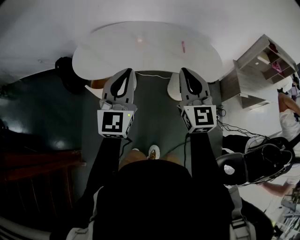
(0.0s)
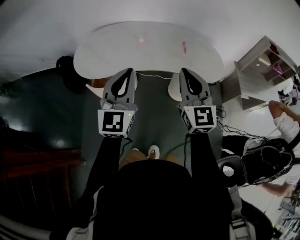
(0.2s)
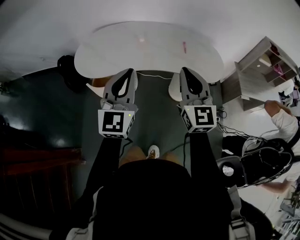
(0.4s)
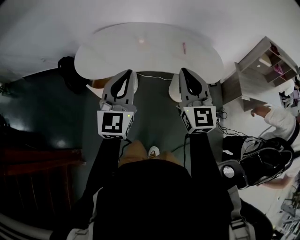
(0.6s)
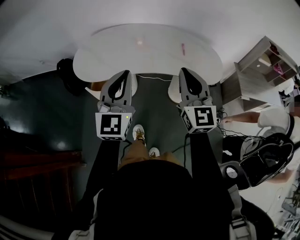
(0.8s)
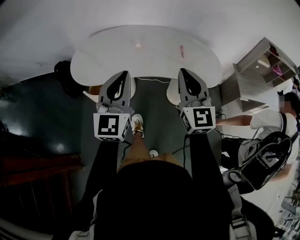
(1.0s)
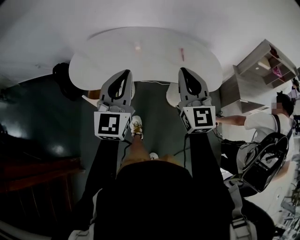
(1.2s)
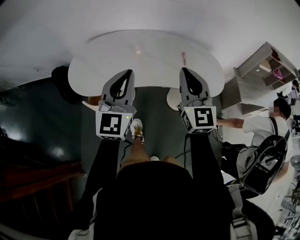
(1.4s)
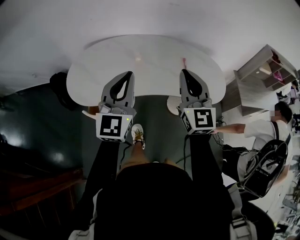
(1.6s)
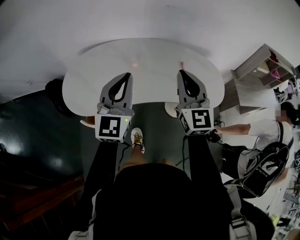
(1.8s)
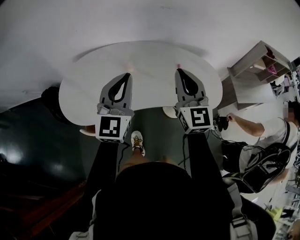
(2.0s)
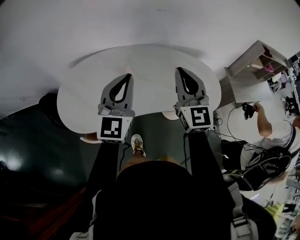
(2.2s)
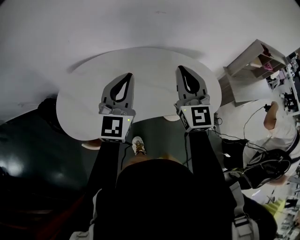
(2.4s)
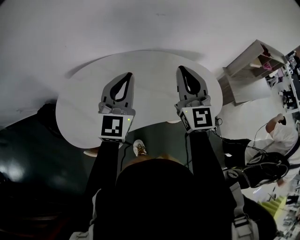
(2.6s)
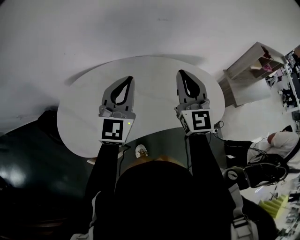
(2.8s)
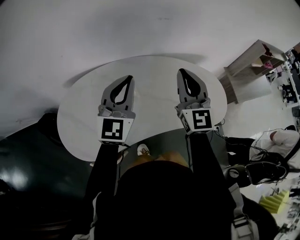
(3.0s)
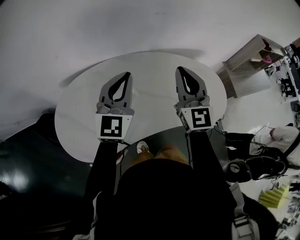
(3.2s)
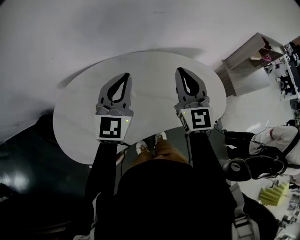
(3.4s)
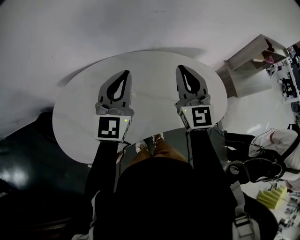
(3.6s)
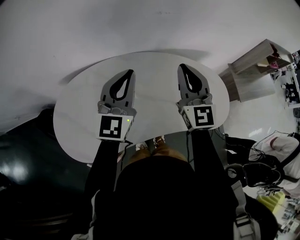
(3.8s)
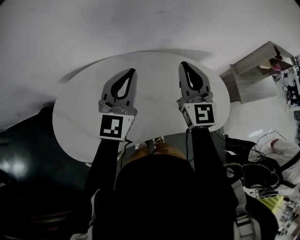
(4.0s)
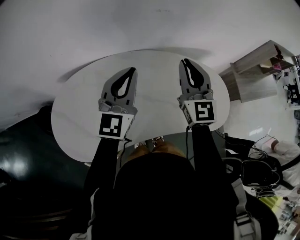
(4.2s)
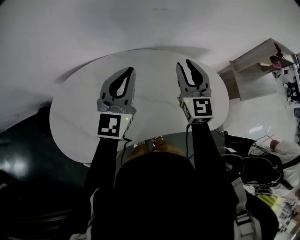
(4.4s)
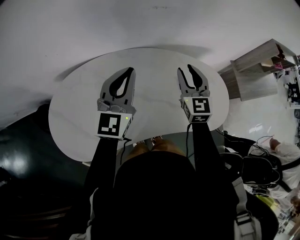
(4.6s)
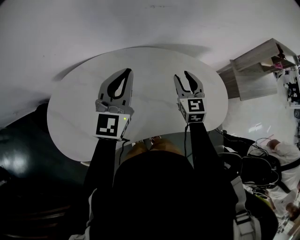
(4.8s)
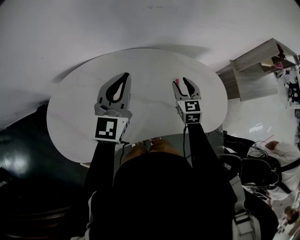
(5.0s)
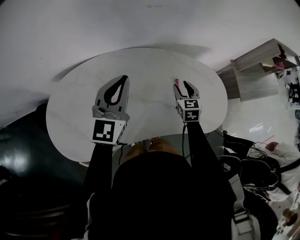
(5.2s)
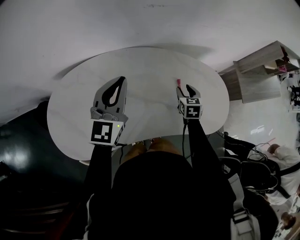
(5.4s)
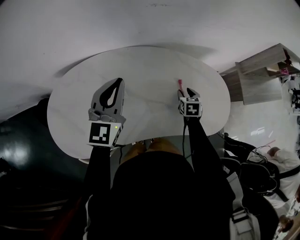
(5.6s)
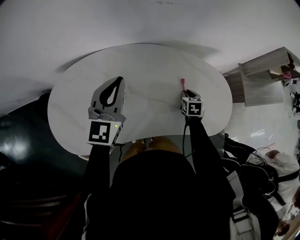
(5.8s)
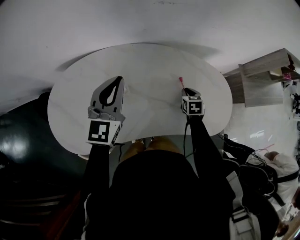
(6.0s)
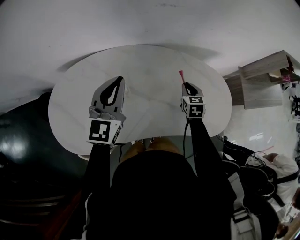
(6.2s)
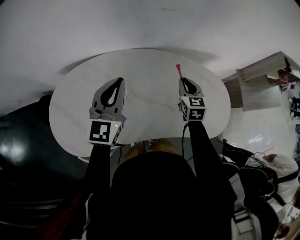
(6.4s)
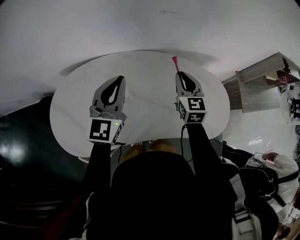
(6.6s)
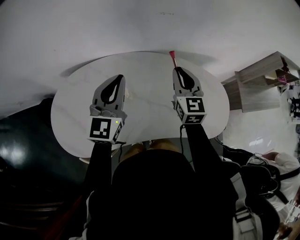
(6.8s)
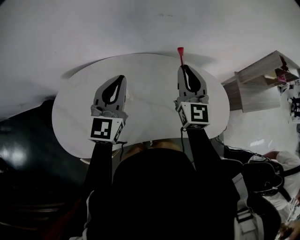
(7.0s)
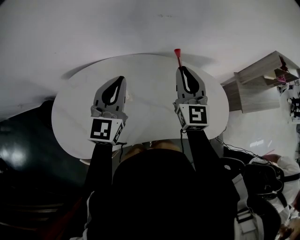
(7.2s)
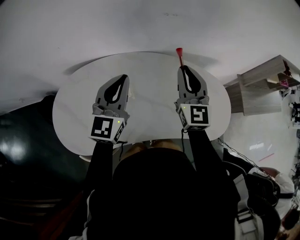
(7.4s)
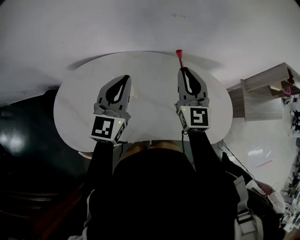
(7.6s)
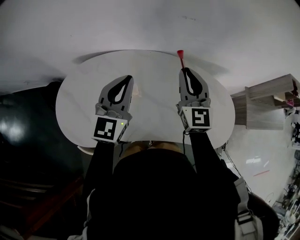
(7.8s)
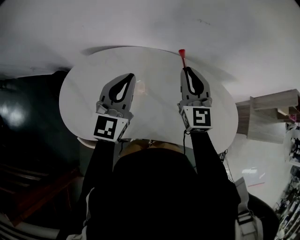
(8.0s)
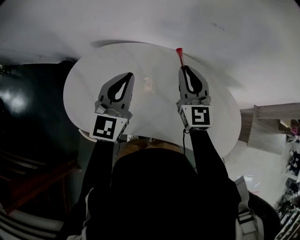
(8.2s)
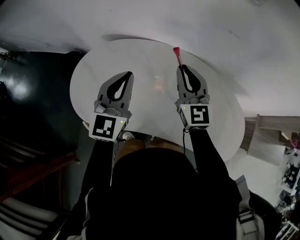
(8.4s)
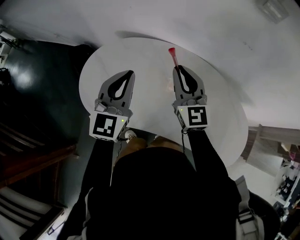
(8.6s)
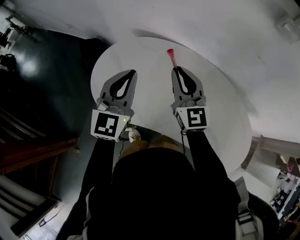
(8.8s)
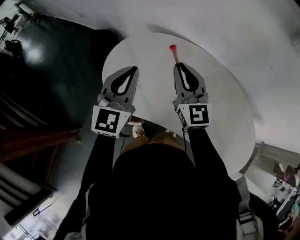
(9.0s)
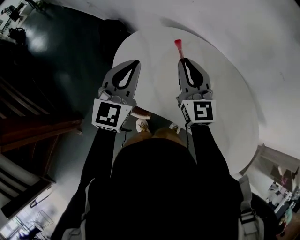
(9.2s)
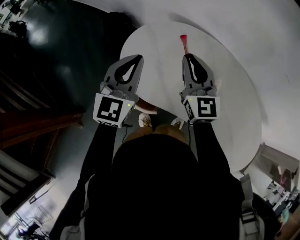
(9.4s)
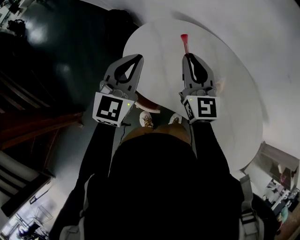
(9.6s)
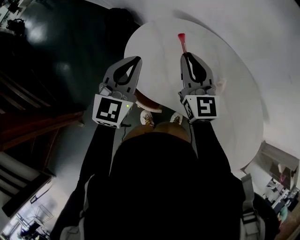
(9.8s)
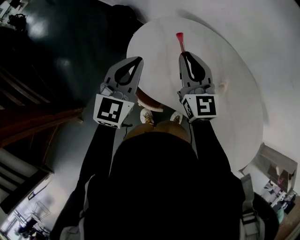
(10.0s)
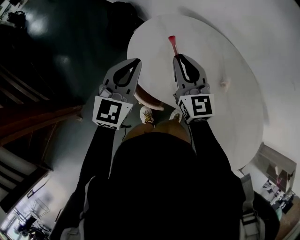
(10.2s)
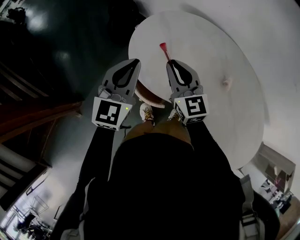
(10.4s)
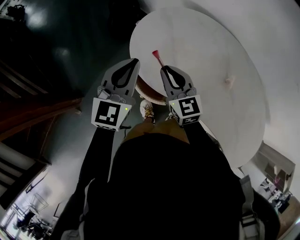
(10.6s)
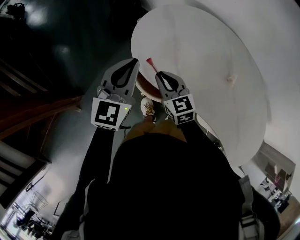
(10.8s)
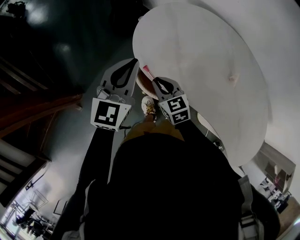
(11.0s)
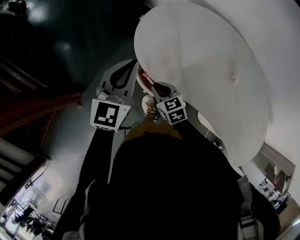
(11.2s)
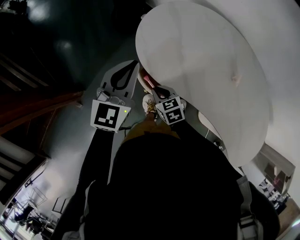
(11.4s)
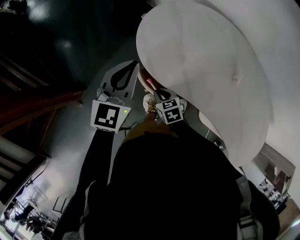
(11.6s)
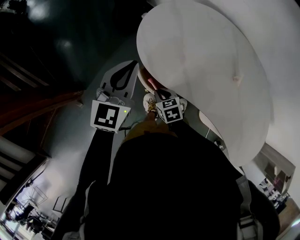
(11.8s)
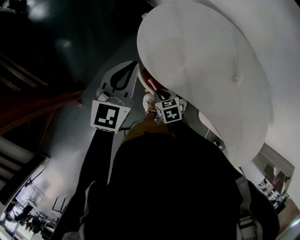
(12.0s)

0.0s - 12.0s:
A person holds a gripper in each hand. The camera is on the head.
0.0s - 1.6s: The two grippers go some 15 cm forward.
1.6s - 3.0s: The two grippers go approximately 20 cm forward.
3.0s - 4.4s: The left gripper is displaced forward by about 10 cm. The right gripper moves forward and downward, approximately 10 cm, and opens up.
4.4s - 6.0s: The right gripper goes roughly 30 cm downward, and tips its fingers downward by approximately 50 degrees. Meanwhile the left gripper moves downward, about 5 cm.
6.0s - 7.6s: The right gripper shifts approximately 35 cm upward and to the left, and tilts its fingers about 50 degrees upward.
7.6s - 9.0s: The left gripper ends up approximately 30 cm from where it was, and rotates some 30 degrees; the right gripper changes place by about 35 cm, and changes its angle by about 40 degrees.
9.0s - 10.4s: The grippers both shift to the left and downward by roughly 15 cm.
10.4s - 12.0s: The right gripper travels downward and backward by some 30 cm, and tilts its fingers approximately 40 degrees downward. Meanwhile the left gripper changes place by roughly 5 cm.

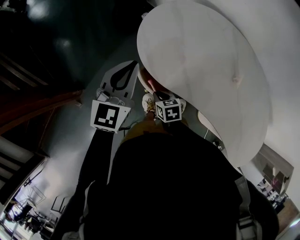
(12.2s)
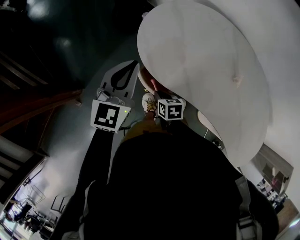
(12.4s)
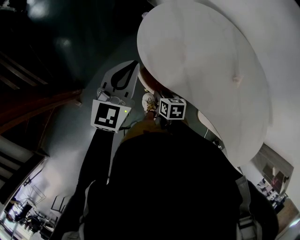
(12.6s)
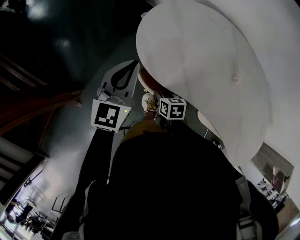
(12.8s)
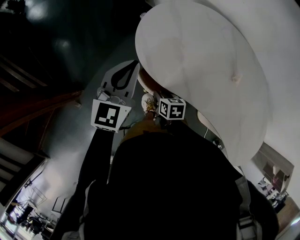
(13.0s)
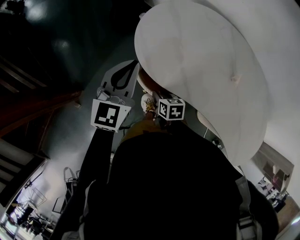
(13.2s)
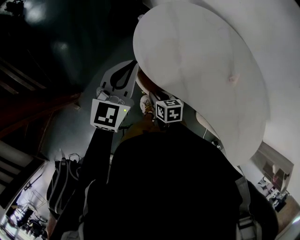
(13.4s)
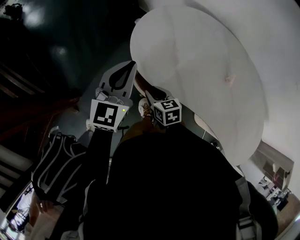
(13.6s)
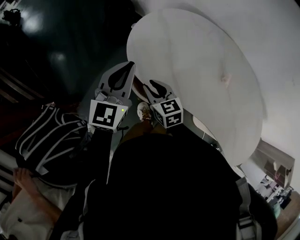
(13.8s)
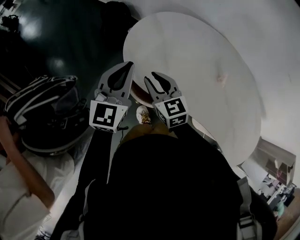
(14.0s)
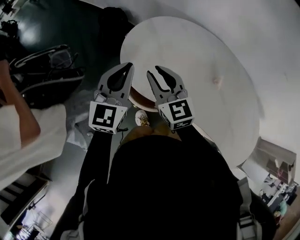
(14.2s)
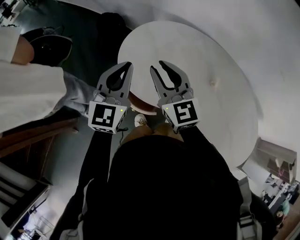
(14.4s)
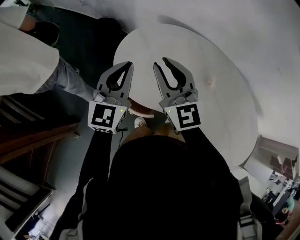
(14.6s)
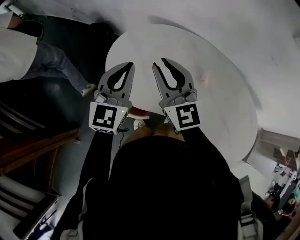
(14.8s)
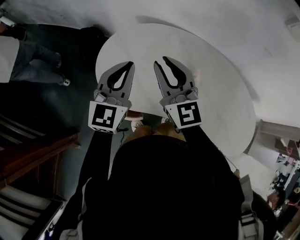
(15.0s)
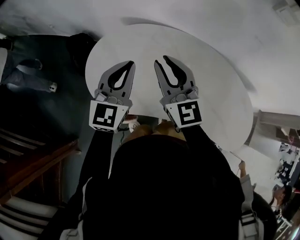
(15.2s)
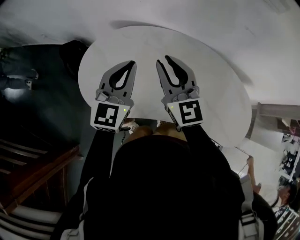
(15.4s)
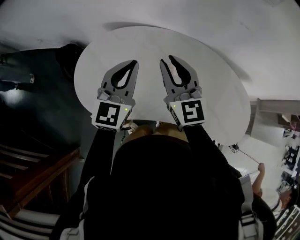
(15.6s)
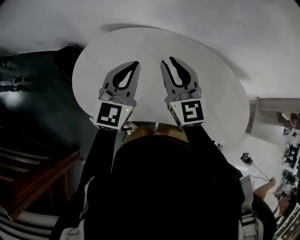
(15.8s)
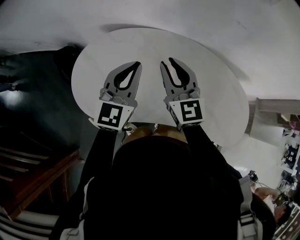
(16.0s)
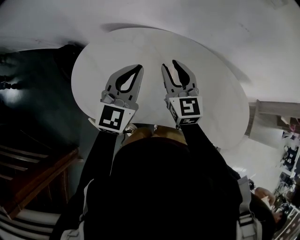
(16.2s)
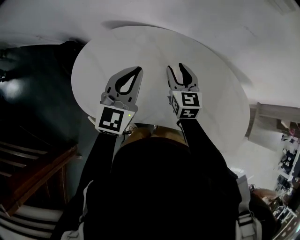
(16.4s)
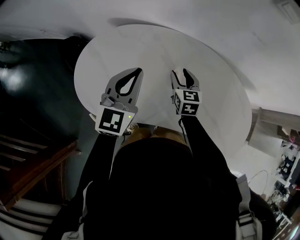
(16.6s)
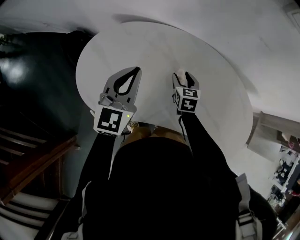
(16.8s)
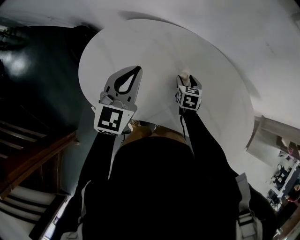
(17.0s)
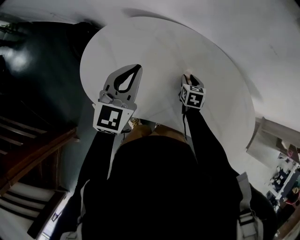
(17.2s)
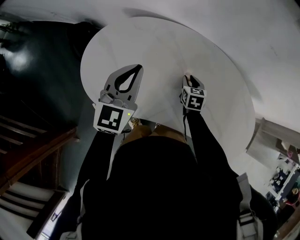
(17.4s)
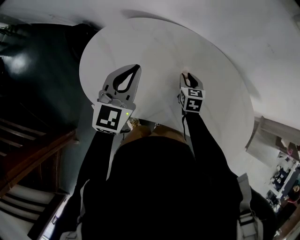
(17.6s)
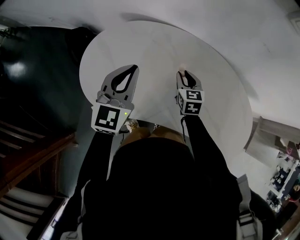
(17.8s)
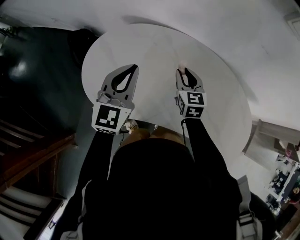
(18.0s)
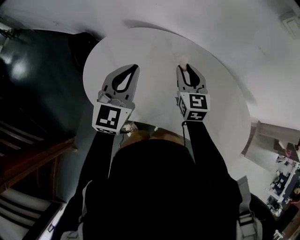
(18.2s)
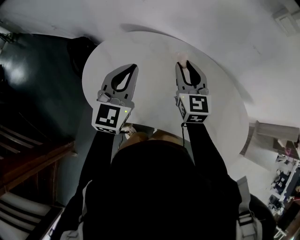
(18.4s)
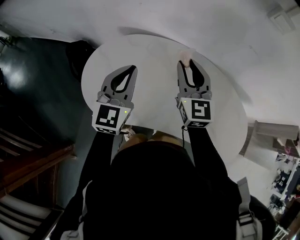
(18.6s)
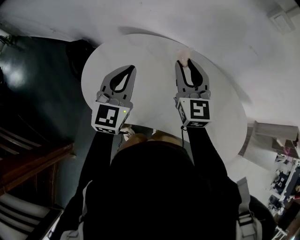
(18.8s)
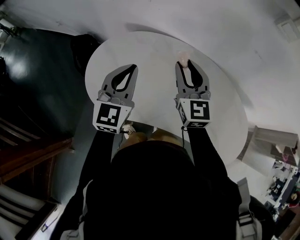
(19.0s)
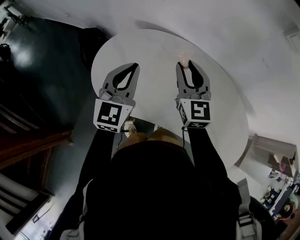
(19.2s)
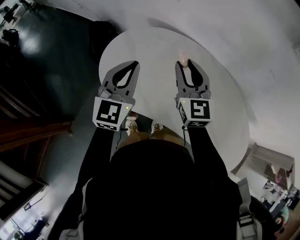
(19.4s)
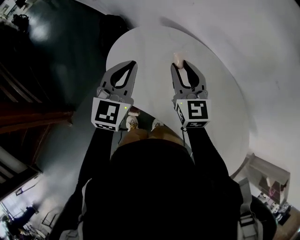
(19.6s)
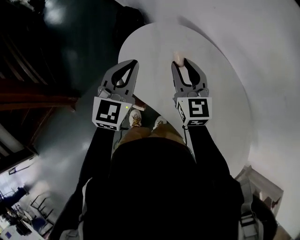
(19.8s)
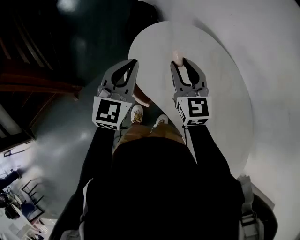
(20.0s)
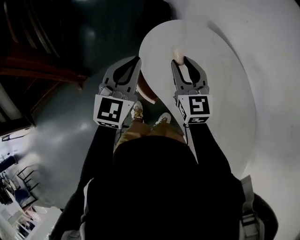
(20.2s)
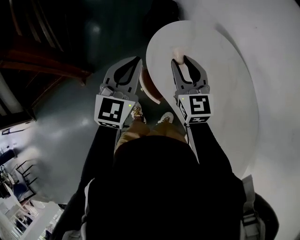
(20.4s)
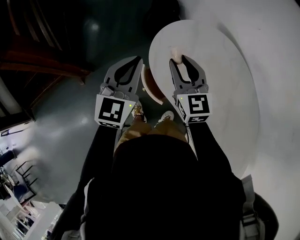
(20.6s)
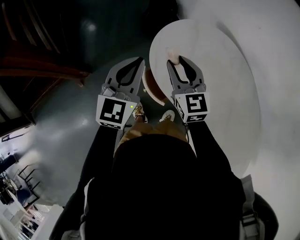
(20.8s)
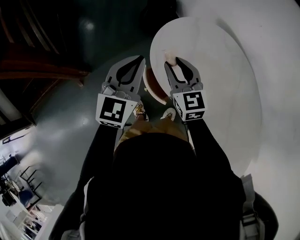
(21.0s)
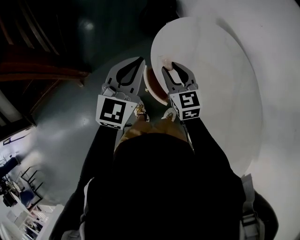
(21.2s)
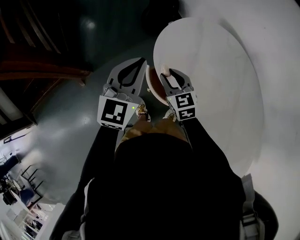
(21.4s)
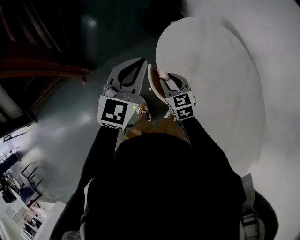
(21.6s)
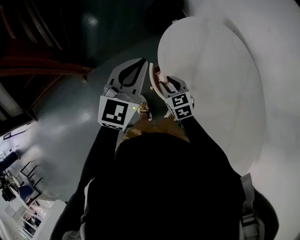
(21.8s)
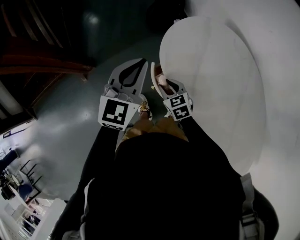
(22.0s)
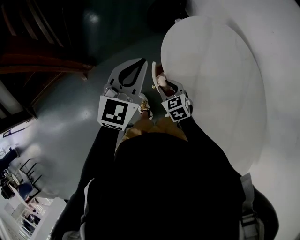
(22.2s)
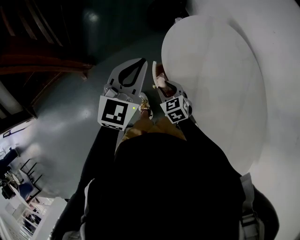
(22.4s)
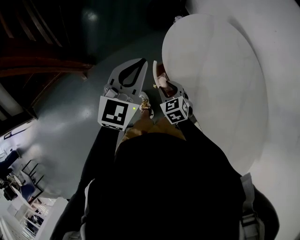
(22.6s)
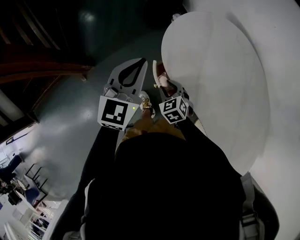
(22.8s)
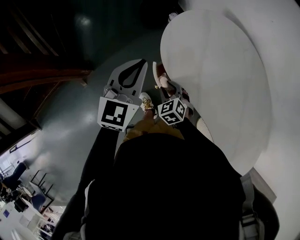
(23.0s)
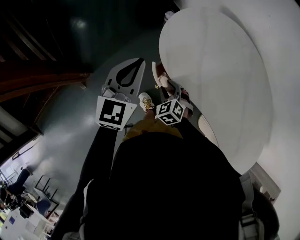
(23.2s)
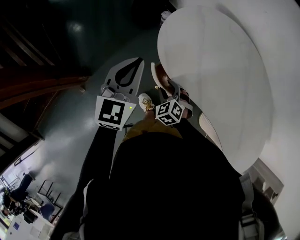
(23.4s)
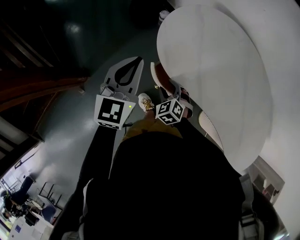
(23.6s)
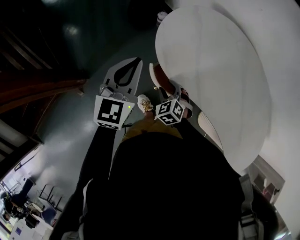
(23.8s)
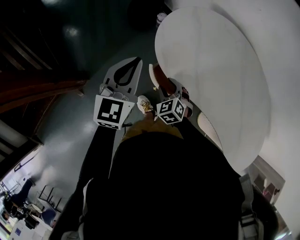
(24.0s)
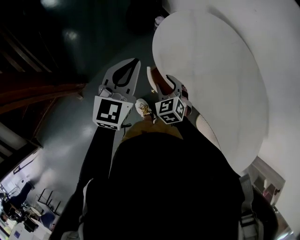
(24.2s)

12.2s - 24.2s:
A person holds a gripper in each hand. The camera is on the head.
12.2s - 13.8s: The right gripper is displaced upward and forward by approximately 15 cm, and turns by about 30 degrees.
13.8s - 15.2s: The left gripper travels to the right by some 20 cm, and turns by about 20 degrees. Meanwhile the right gripper travels upward and to the right by approximately 30 cm, and angles its fingers upward, by about 30 degrees.
15.2s - 16.6s: The right gripper goes approximately 25 cm downward and to the right, tilts its fingers about 30 degrees downward, and opens its fingers; the left gripper travels to the right by approximately 10 cm.
16.6s - 18.2s: The right gripper goes some 10 cm upward and to the left, and closes up, while the left gripper heads to the left, covering some 5 cm.
18.2s - 19.8s: The left gripper ends up roughly 15 cm from where it was, and rotates approximately 30 degrees, while the right gripper changes place by roughly 20 cm, and rotates some 40 degrees.
19.8s - 21.2s: The left gripper heads to the left, covering approximately 15 cm. Meanwhile the right gripper heads to the left and downward, covering about 20 cm, and turns by approximately 30 degrees.
21.2s - 22.6s: The right gripper heads downward and backward, covering about 20 cm, and changes its angle by approximately 30 degrees.
22.6s - 24.2s: The right gripper changes place by approximately 5 cm.
